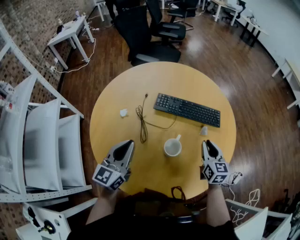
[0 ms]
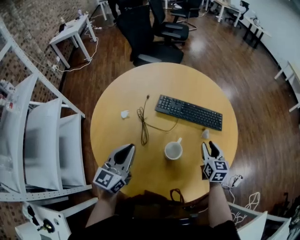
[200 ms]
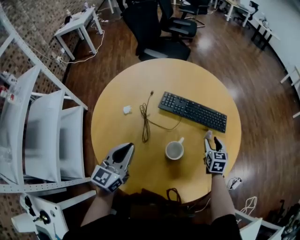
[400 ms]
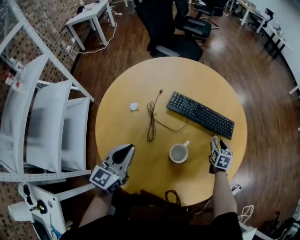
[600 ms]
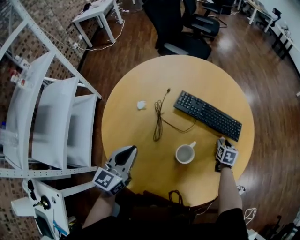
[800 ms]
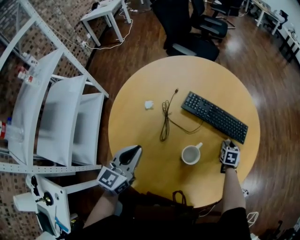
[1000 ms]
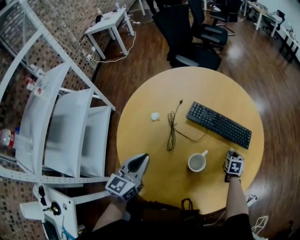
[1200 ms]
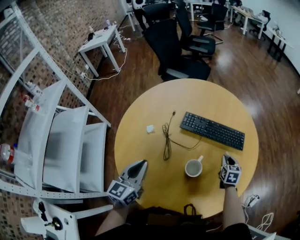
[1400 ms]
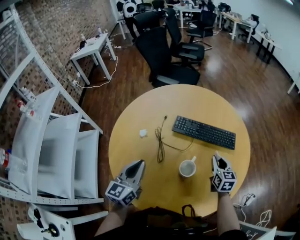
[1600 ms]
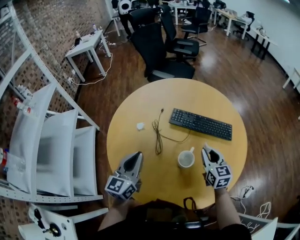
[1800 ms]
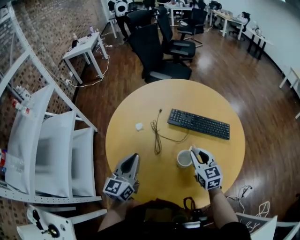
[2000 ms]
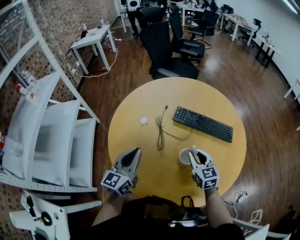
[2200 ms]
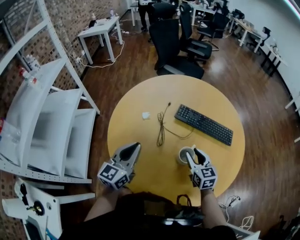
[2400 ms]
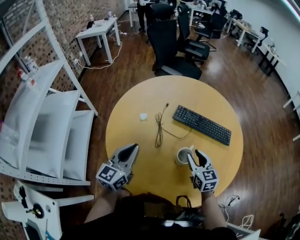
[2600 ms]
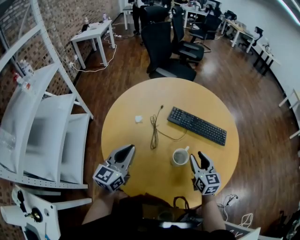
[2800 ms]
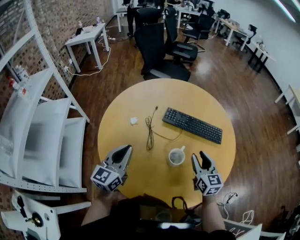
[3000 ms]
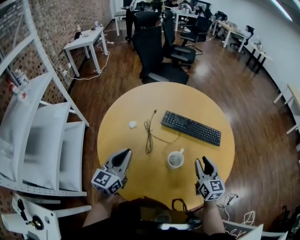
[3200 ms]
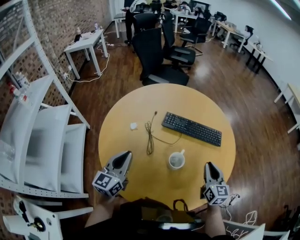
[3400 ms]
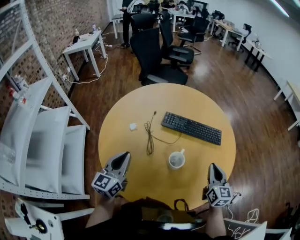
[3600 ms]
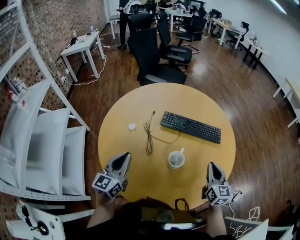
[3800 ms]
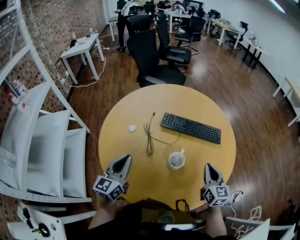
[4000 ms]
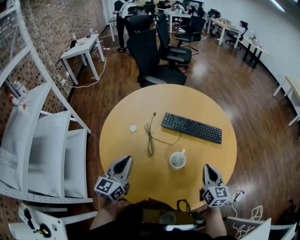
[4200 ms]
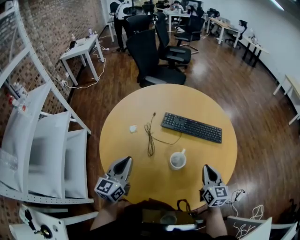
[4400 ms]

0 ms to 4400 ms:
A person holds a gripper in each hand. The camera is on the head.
0 ms to 1400 ms: The right gripper goes roughly 15 cm downward and forward, swivels some 20 degrees, and opens, then closes once more.
1400 ms to 3000 ms: The right gripper heads upward, to the left and backward, covering about 20 cm, and rotates some 30 degrees.
3000 ms to 4400 ms: The right gripper shifts by about 5 cm, and closes its fingers.

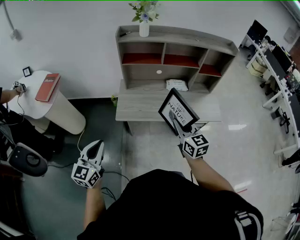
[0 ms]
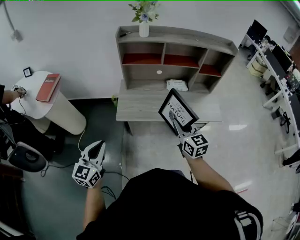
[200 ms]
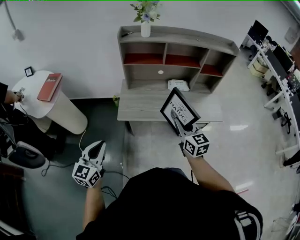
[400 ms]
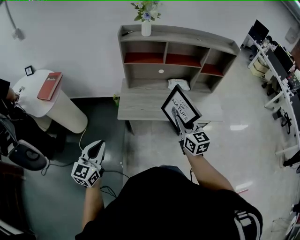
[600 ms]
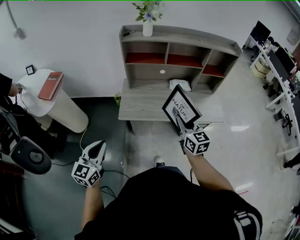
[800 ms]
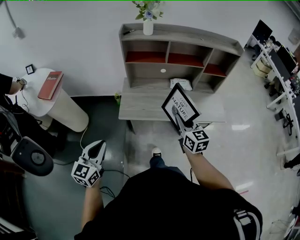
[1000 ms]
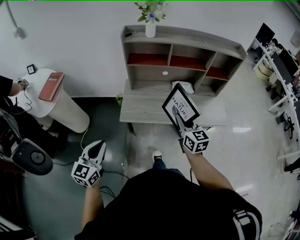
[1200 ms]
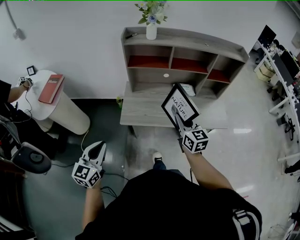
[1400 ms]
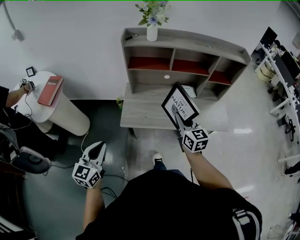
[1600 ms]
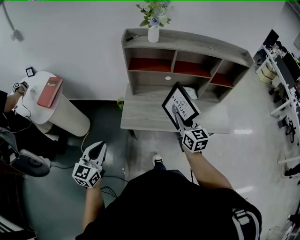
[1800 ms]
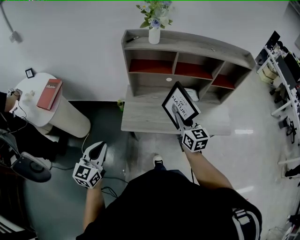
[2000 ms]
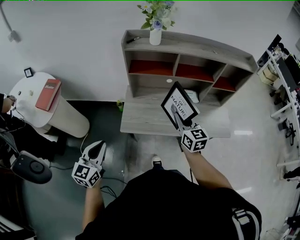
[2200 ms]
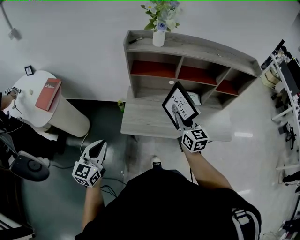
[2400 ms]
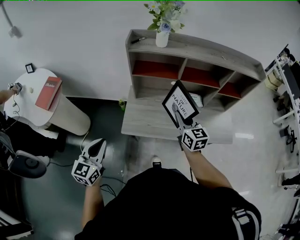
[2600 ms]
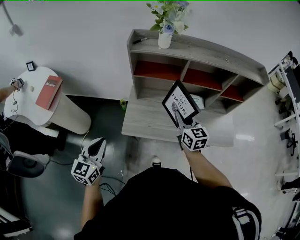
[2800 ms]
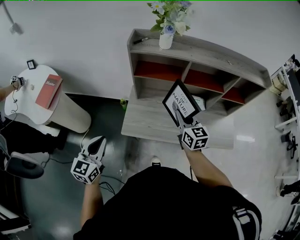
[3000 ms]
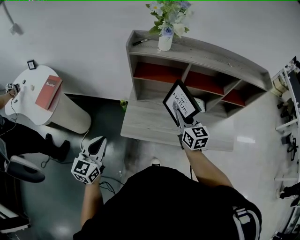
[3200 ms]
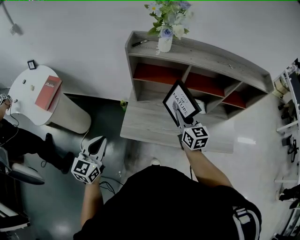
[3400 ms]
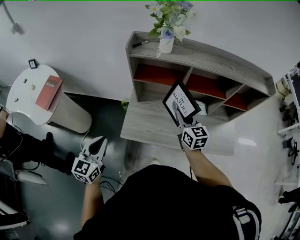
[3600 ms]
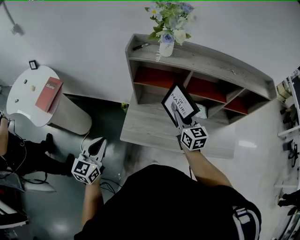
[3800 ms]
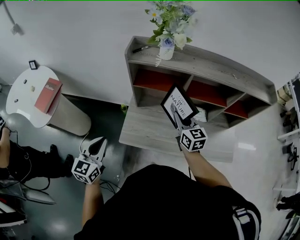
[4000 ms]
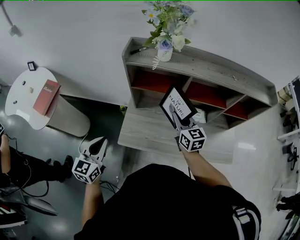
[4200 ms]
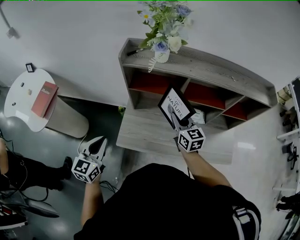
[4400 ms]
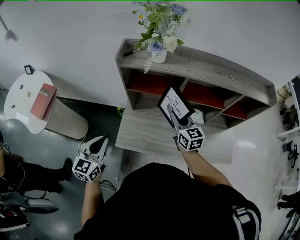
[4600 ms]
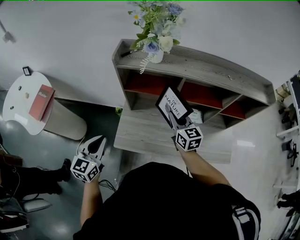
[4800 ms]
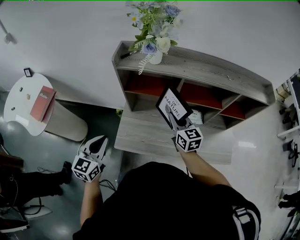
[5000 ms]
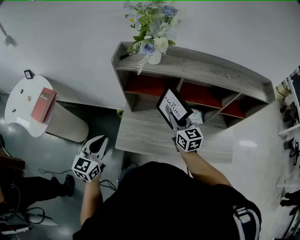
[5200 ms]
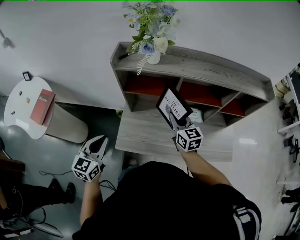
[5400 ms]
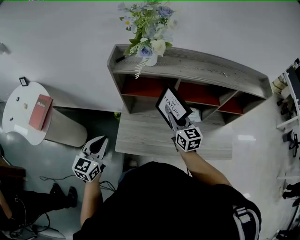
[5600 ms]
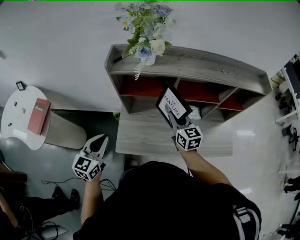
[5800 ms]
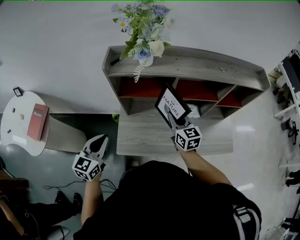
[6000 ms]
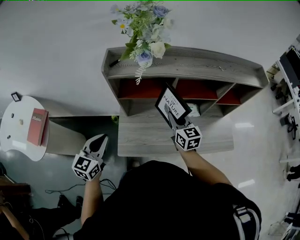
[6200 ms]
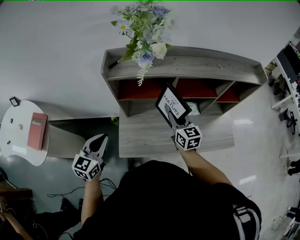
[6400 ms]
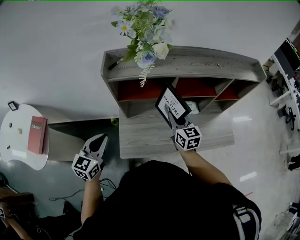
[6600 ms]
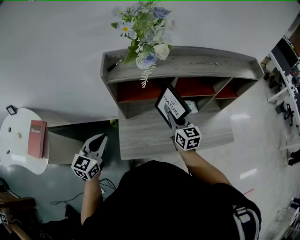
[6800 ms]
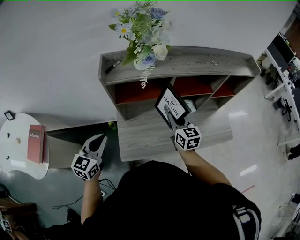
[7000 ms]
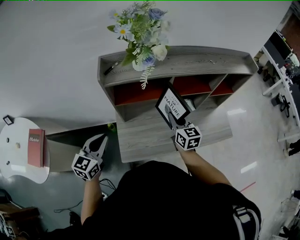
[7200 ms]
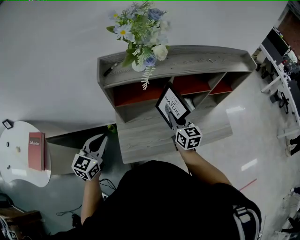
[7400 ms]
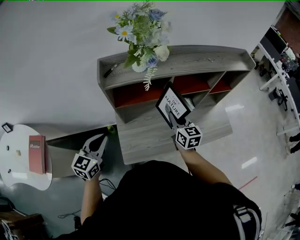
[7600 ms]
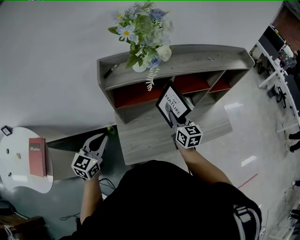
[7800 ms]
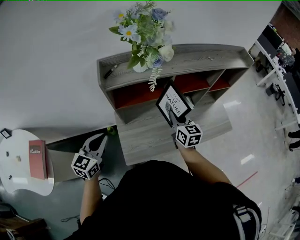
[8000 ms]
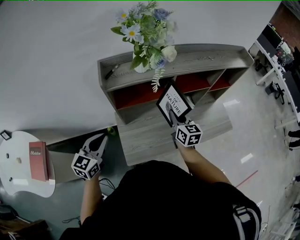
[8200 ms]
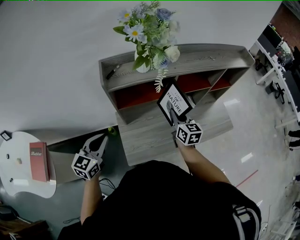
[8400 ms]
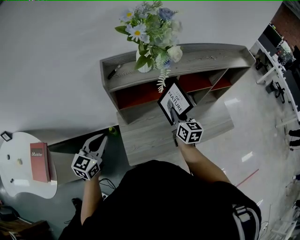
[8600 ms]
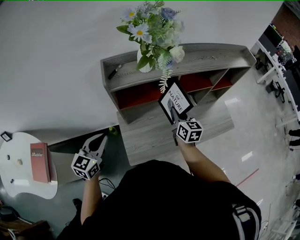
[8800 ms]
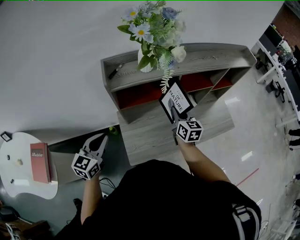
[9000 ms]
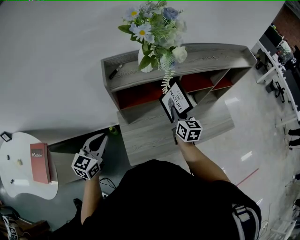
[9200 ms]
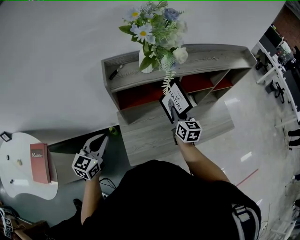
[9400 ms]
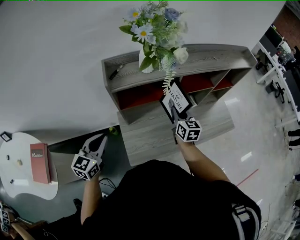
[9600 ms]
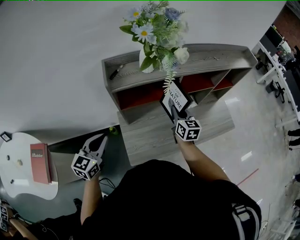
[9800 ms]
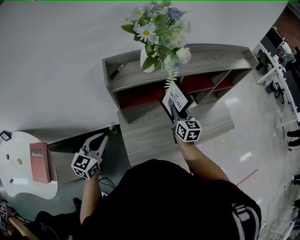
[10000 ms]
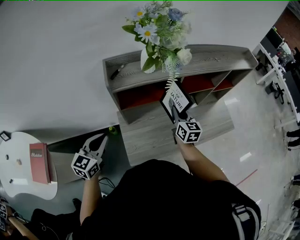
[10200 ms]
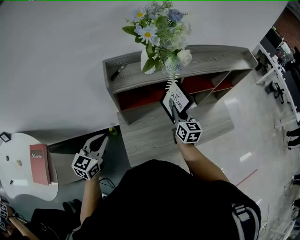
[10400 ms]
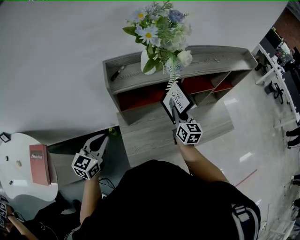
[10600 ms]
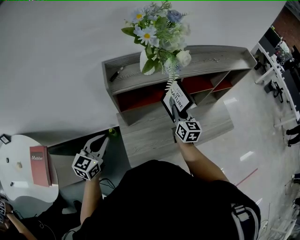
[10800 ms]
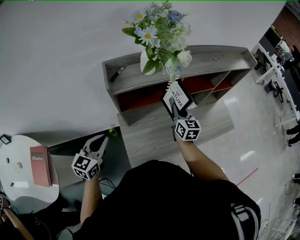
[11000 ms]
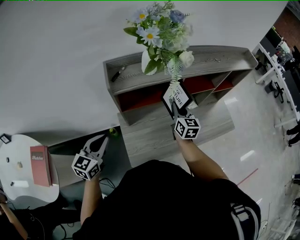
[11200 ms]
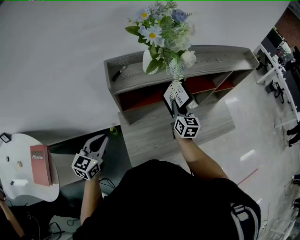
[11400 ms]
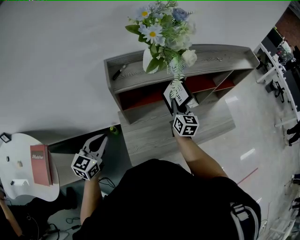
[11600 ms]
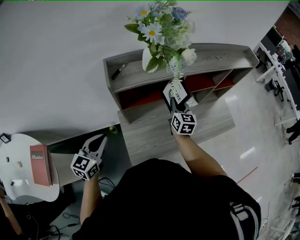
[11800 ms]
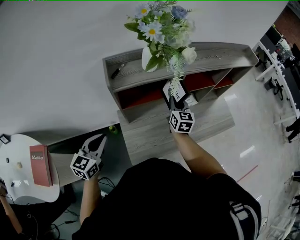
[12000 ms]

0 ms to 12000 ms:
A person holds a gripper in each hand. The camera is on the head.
0 ms to 1600 ms: The left gripper moves forward, approximately 5 cm, while the right gripper travels forward by approximately 10 cm.
1600 ms to 3000 ms: Both grippers travel together forward, roughly 15 cm.
3000 ms to 4400 ms: The grippers both shift forward by some 10 cm.
4400 ms to 6000 ms: The left gripper heads forward, covering approximately 5 cm.
6000 ms to 7600 ms: The left gripper goes roughly 10 cm forward and to the left.
7600 ms to 9000 ms: The grippers make only small movements.
9000 ms to 10400 ms: The two grippers keep their place.
10400 ms to 12000 ms: The grippers move only a little.

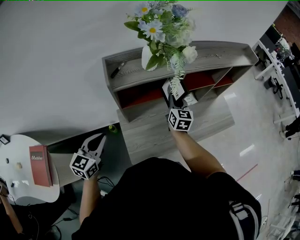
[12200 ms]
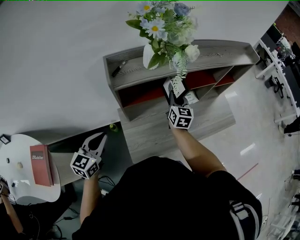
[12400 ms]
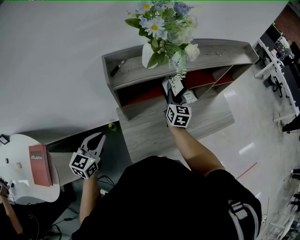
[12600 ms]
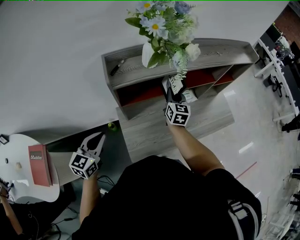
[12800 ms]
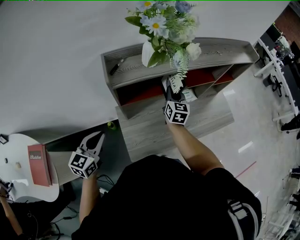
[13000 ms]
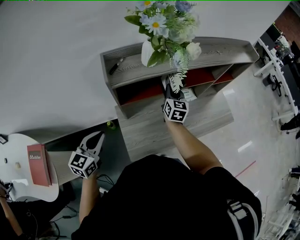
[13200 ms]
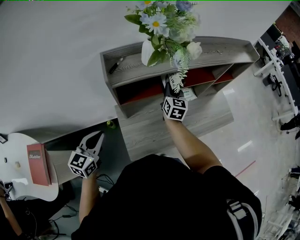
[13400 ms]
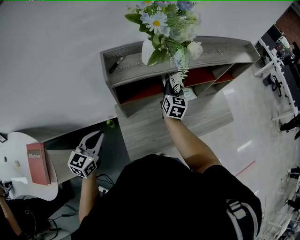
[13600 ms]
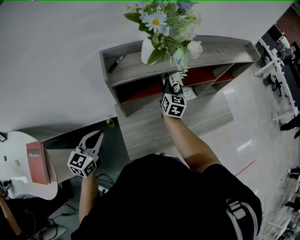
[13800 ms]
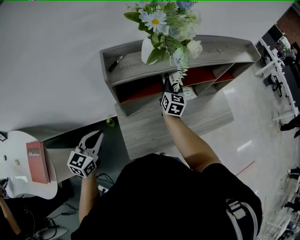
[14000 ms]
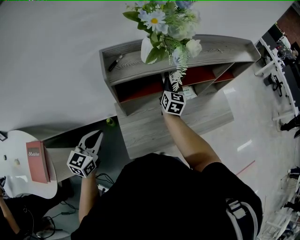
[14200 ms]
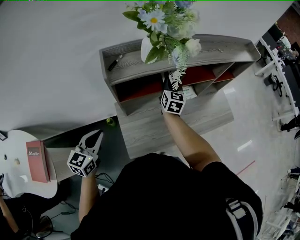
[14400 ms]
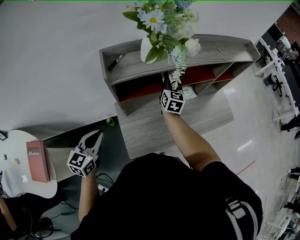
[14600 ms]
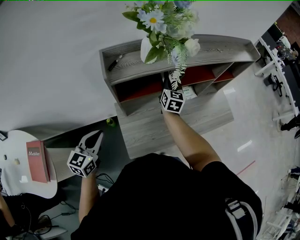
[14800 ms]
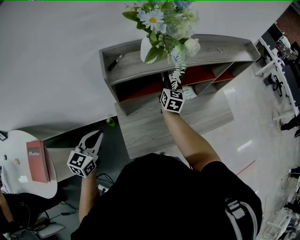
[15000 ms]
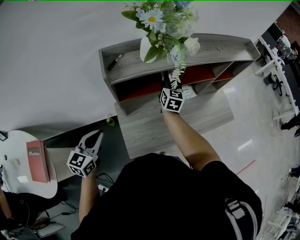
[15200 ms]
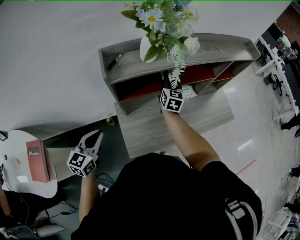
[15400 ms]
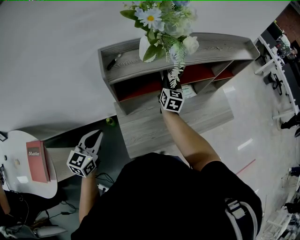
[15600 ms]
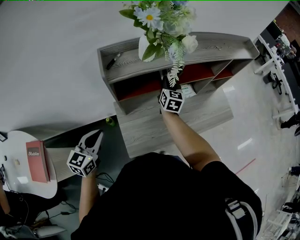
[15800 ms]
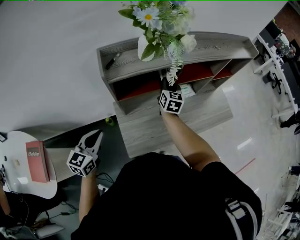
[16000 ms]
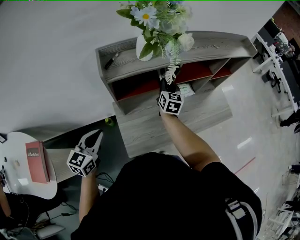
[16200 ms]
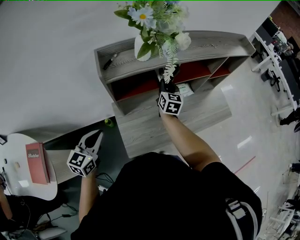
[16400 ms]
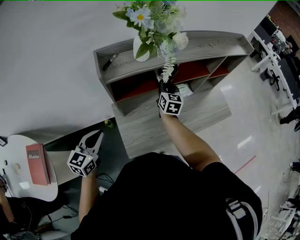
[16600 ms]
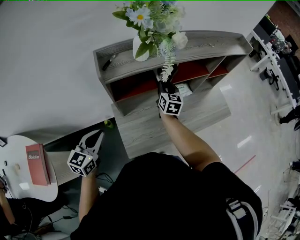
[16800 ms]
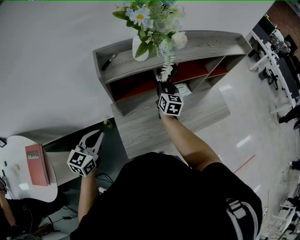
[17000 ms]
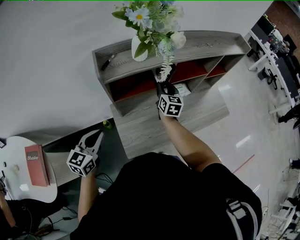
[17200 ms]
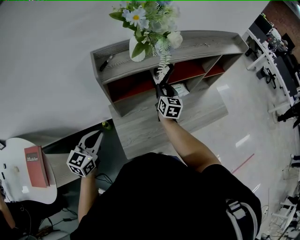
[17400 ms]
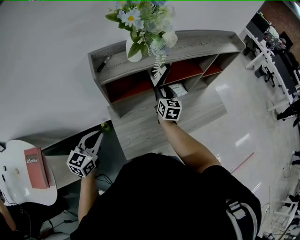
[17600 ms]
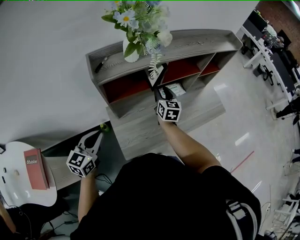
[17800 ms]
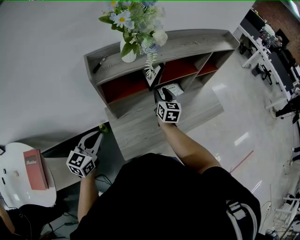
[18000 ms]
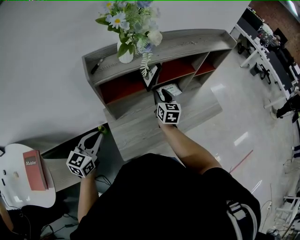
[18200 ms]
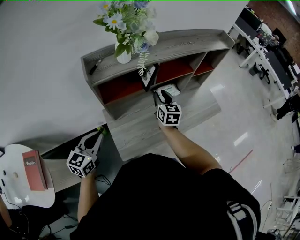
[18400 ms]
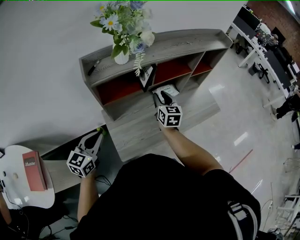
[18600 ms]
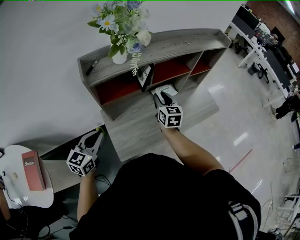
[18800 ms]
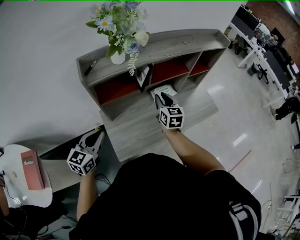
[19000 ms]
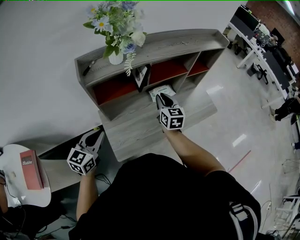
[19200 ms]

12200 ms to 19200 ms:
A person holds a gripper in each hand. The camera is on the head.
12200 ms to 16400 ms: There are only small adjustments of the grippers.
16400 ms to 17800 ms: The right gripper moves approximately 5 cm, and opens.
17800 ms to 19200 ms: The two grippers go roughly 5 cm to the right.

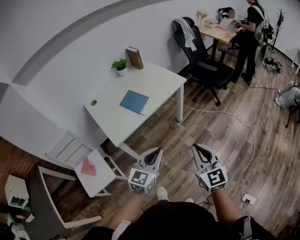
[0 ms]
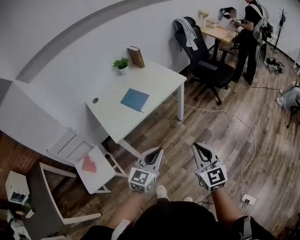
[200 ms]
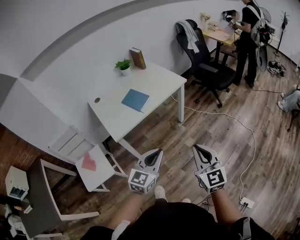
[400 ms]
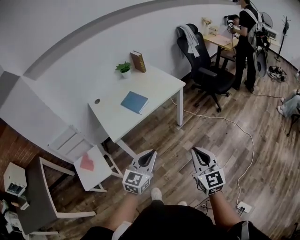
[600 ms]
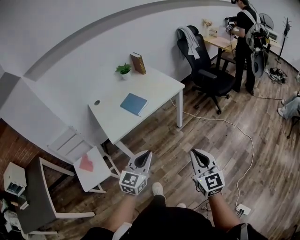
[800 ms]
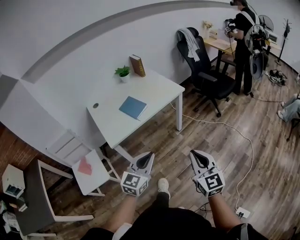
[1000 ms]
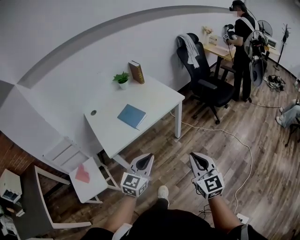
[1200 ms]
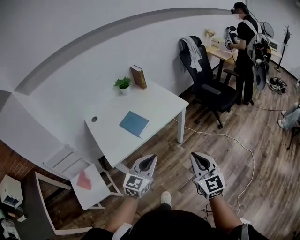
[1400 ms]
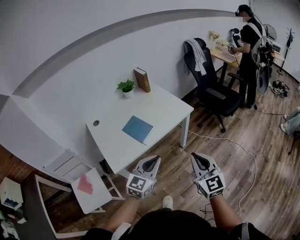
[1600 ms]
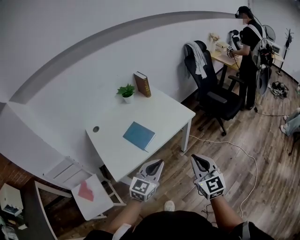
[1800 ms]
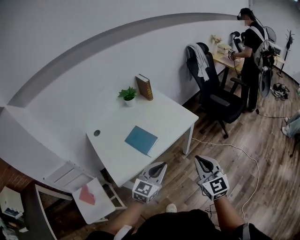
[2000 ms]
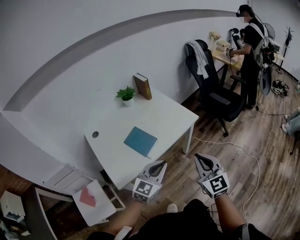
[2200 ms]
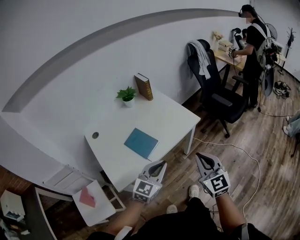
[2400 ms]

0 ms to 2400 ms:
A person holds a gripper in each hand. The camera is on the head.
0 ms to 1200 ms: The right gripper moves to the right, roughly 5 cm. The left gripper shifts by about 5 cm.
1200 ms to 2400 ms: The two grippers go some 25 cm forward.
